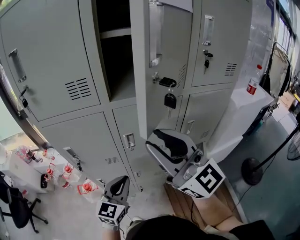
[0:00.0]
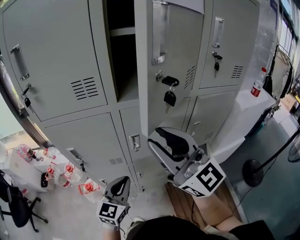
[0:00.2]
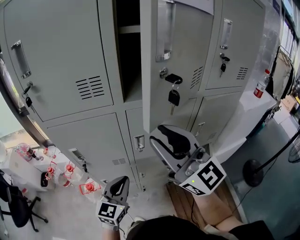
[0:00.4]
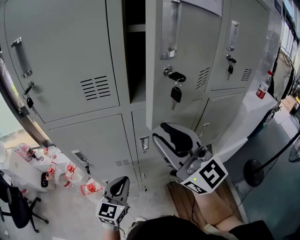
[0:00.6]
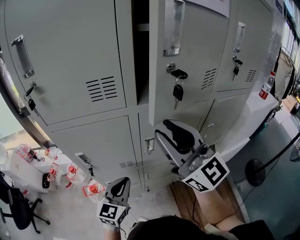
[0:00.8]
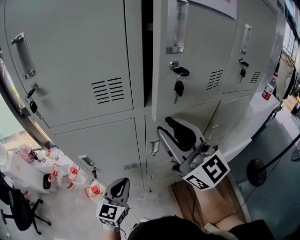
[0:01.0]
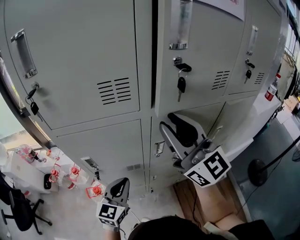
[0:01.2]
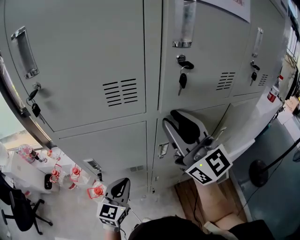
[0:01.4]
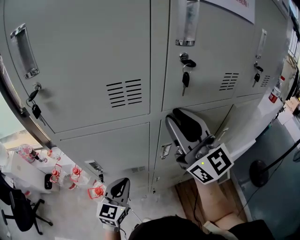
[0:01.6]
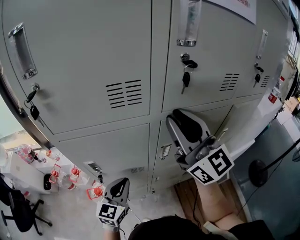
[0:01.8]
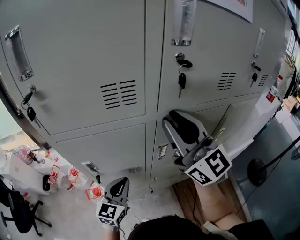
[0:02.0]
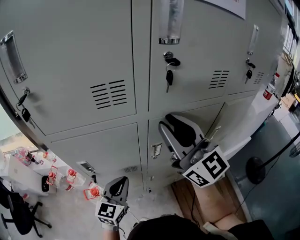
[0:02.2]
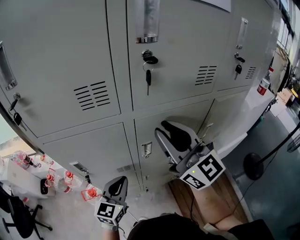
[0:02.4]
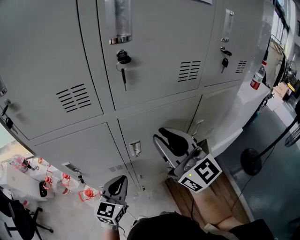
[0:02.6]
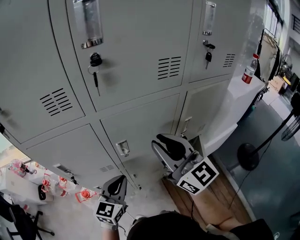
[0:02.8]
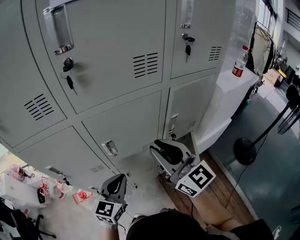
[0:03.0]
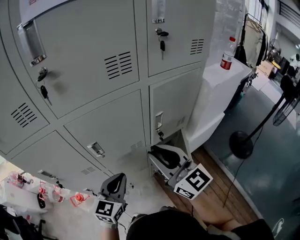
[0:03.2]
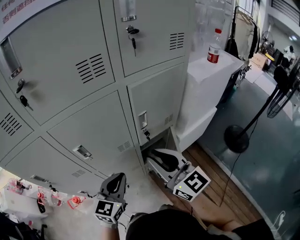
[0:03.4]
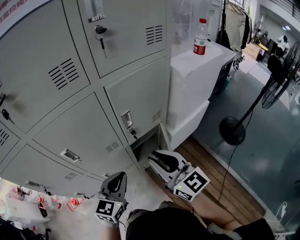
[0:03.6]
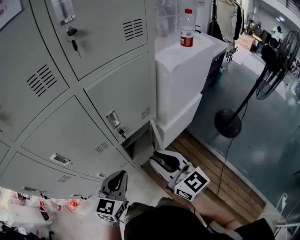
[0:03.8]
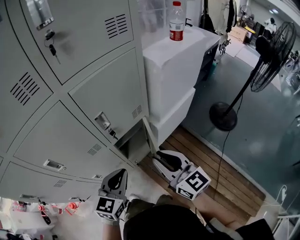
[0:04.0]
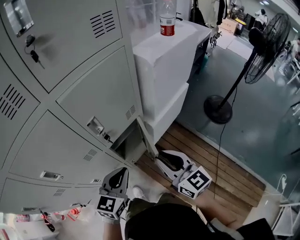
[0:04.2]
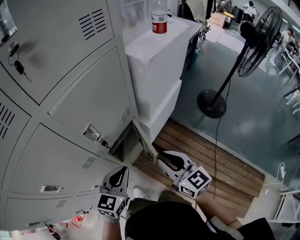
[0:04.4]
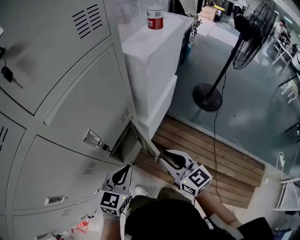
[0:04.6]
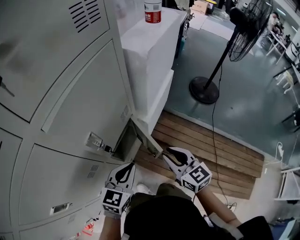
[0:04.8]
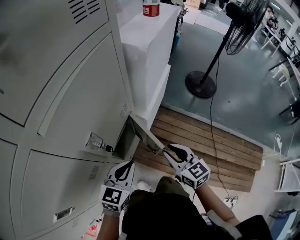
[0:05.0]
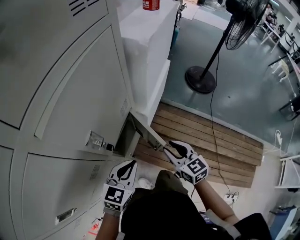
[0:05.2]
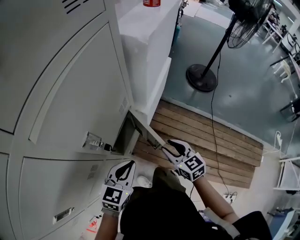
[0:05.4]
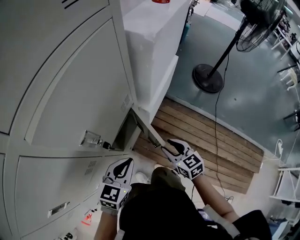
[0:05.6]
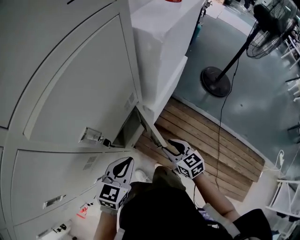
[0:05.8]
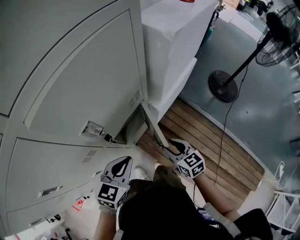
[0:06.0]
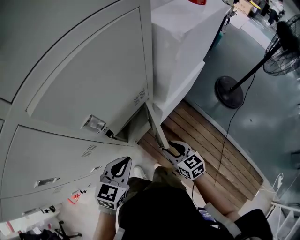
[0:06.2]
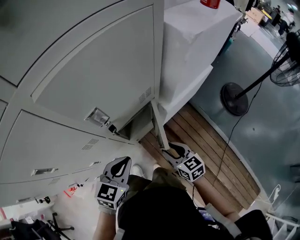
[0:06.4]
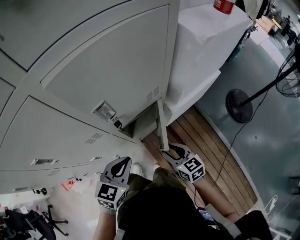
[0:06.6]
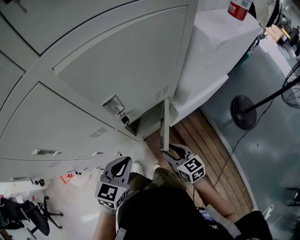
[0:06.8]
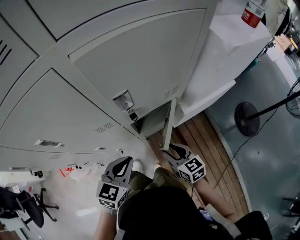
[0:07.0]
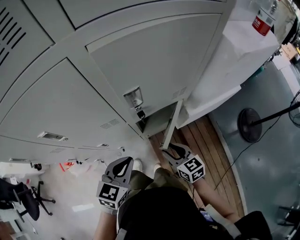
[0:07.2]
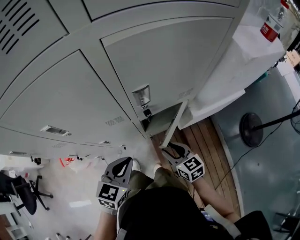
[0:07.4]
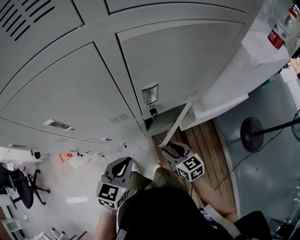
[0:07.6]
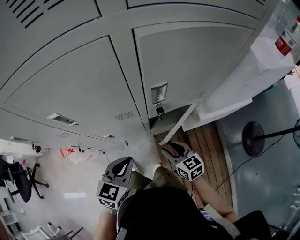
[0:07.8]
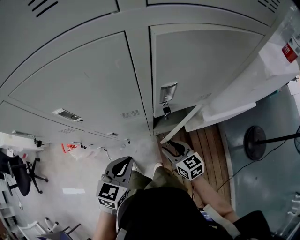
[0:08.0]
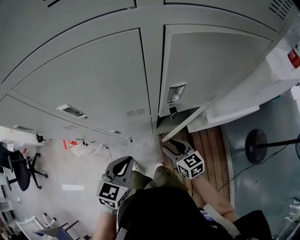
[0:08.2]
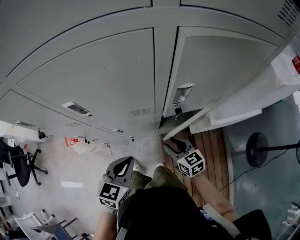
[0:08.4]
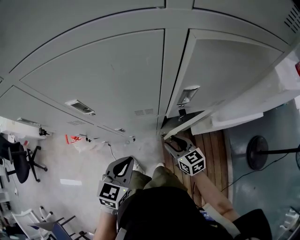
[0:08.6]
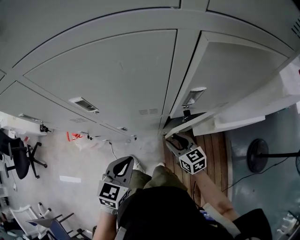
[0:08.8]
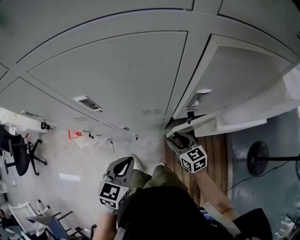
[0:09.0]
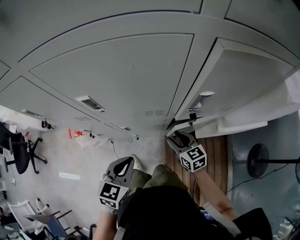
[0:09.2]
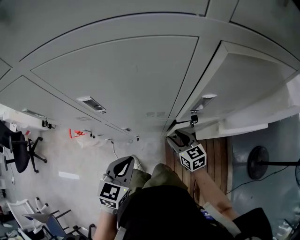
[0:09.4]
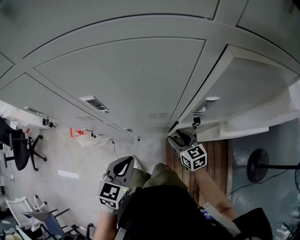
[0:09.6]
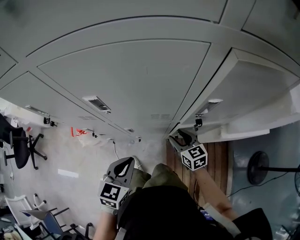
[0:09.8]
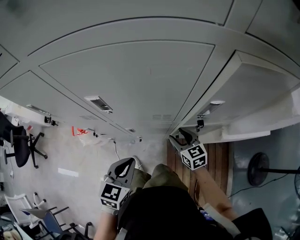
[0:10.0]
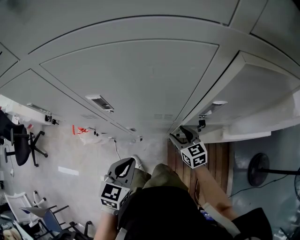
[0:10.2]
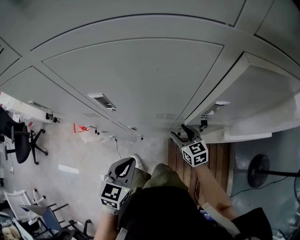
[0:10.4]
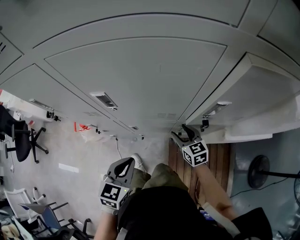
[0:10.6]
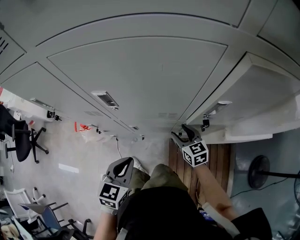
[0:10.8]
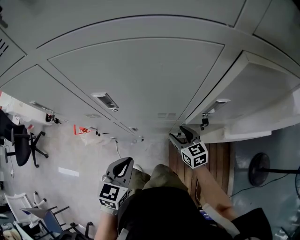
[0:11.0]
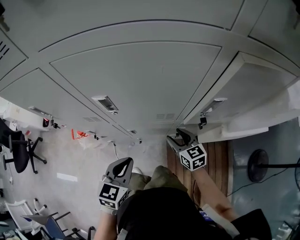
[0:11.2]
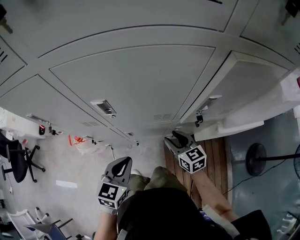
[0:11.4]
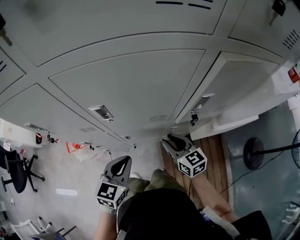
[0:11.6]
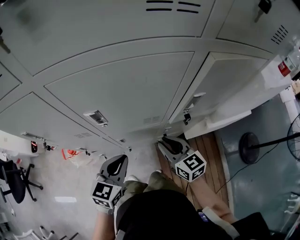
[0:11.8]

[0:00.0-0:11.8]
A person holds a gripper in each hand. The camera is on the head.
0:00.0 to 0:01.4: The right gripper goes some 15 cm forward and to the left, while the left gripper is displaced to the left and forward by roughly 15 cm.
0:01.4 to 0:03.0: The right gripper travels to the right, downward and backward by about 20 cm; the left gripper heads to the right, covering about 20 cm.
0:03.0 to 0:04.4: The right gripper shifts by about 35 cm, and rotates about 40 degrees. Meanwhile the left gripper moves approximately 30 cm, and turns by roughly 30 degrees.
0:04.4 to 0:06.0: The left gripper moves downward, about 5 cm. The right gripper moves downward, approximately 20 cm, and changes its angle by about 20 degrees.
0:06.0 to 0:07.4: The right gripper moves roughly 10 cm, and turns by some 30 degrees. Meanwhile the left gripper moves some 10 cm, and turns by some 30 degrees.
0:07.4 to 0:08.8: The left gripper is displaced to the left by roughly 10 cm. Meanwhile the right gripper heads to the left and forward, covering approximately 10 cm.
0:08.8 to 0:10.4: The right gripper goes about 5 cm forward.
0:10.4 to 0:11.8: The right gripper heads upward and backward, covering roughly 15 cm, and closes up; the left gripper moves upward, roughly 5 cm.

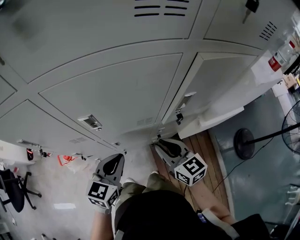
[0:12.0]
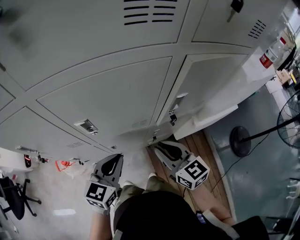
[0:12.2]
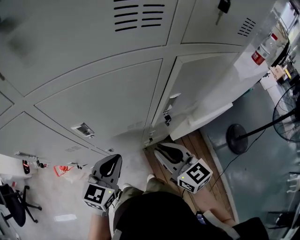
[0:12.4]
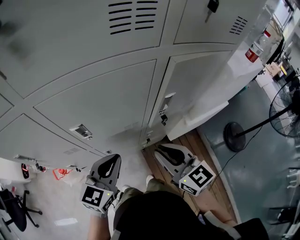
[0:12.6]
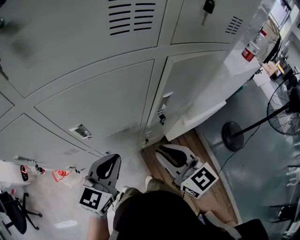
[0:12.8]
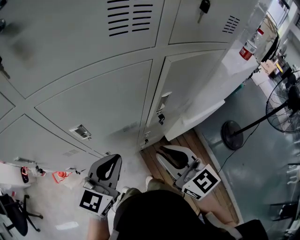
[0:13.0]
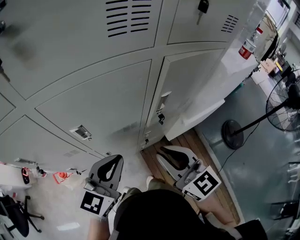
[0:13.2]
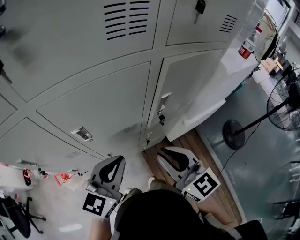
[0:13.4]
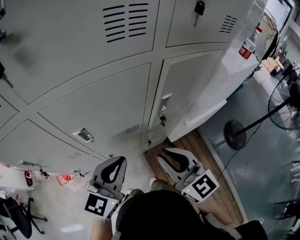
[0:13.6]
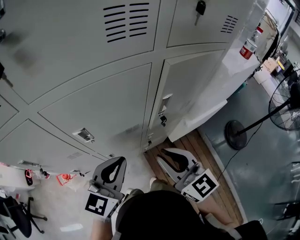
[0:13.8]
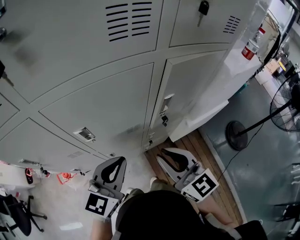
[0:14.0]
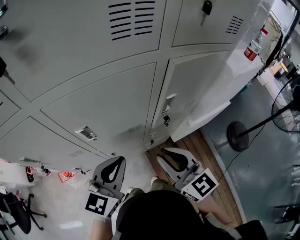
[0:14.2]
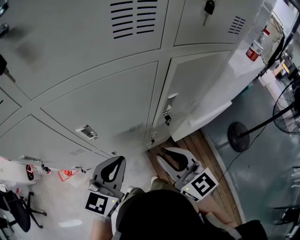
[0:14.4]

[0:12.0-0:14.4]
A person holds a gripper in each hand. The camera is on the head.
0:12.0 to 0:13.2: The left gripper heads upward, covering roughly 10 cm. Meanwhile the right gripper heads upward and backward, covering approximately 15 cm.
0:13.2 to 0:14.4: The grippers move only a little.

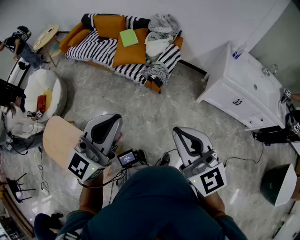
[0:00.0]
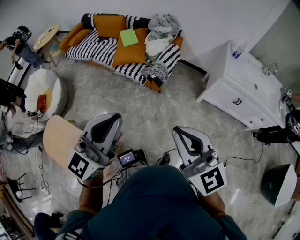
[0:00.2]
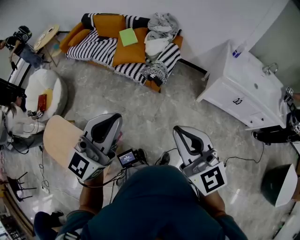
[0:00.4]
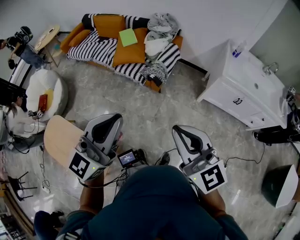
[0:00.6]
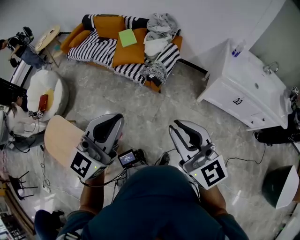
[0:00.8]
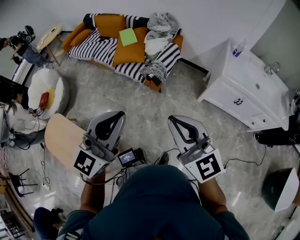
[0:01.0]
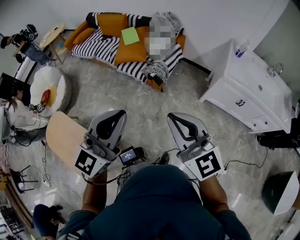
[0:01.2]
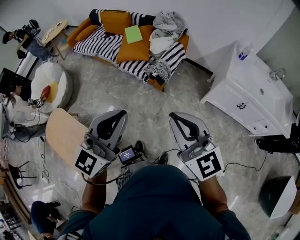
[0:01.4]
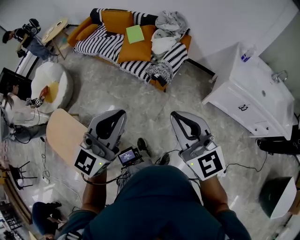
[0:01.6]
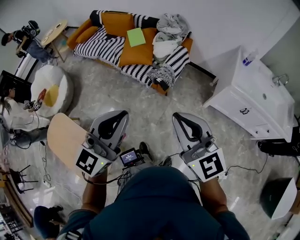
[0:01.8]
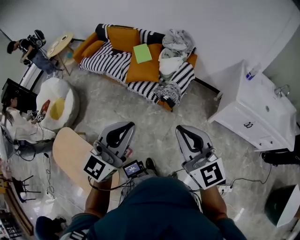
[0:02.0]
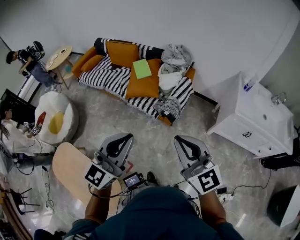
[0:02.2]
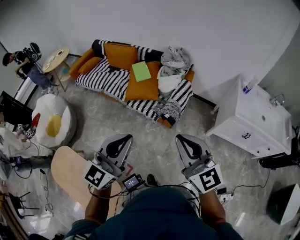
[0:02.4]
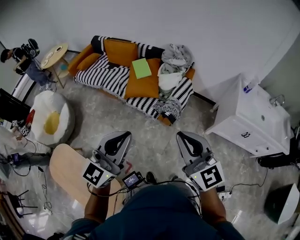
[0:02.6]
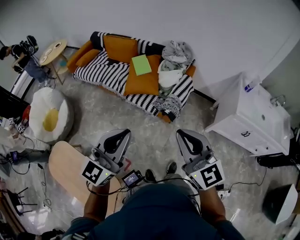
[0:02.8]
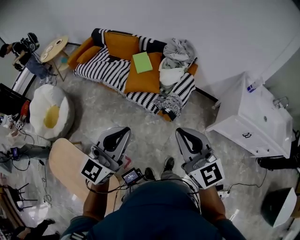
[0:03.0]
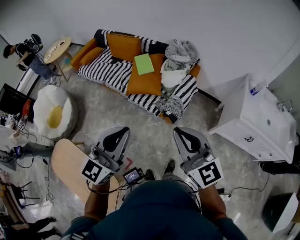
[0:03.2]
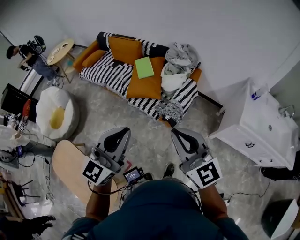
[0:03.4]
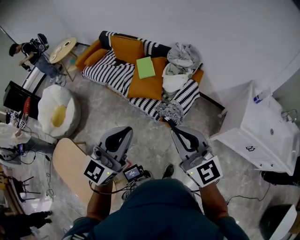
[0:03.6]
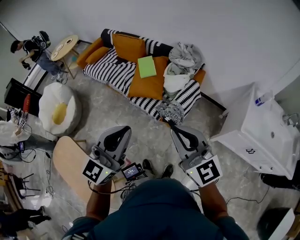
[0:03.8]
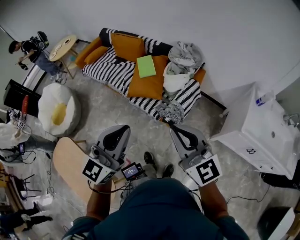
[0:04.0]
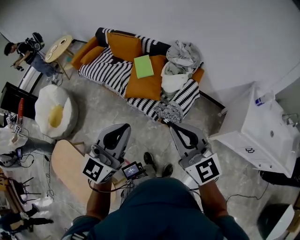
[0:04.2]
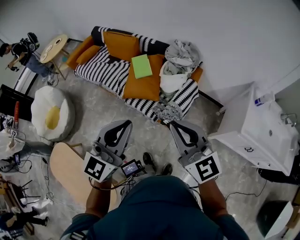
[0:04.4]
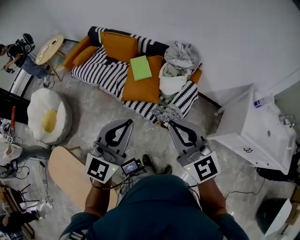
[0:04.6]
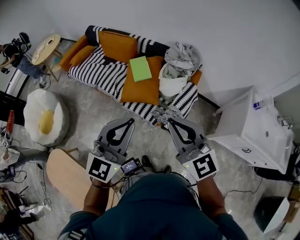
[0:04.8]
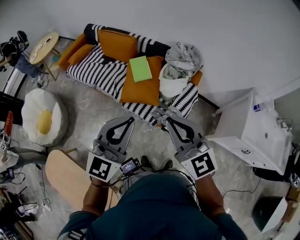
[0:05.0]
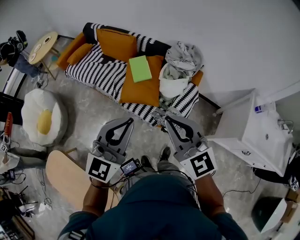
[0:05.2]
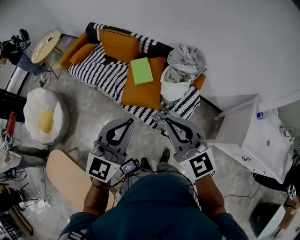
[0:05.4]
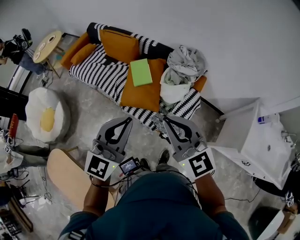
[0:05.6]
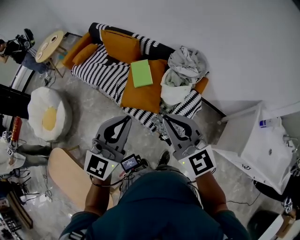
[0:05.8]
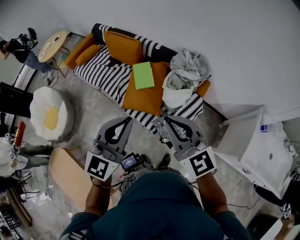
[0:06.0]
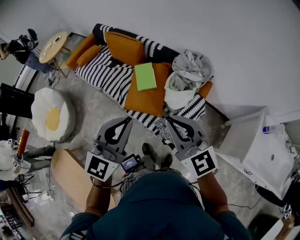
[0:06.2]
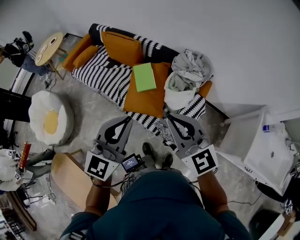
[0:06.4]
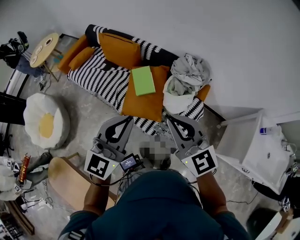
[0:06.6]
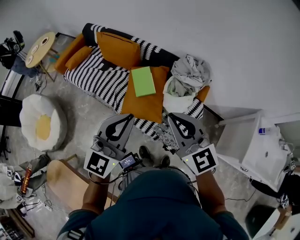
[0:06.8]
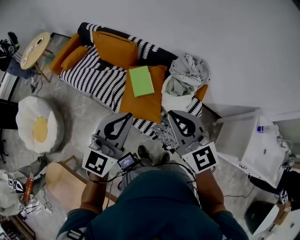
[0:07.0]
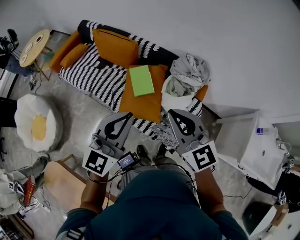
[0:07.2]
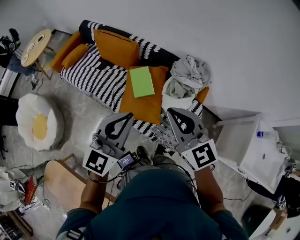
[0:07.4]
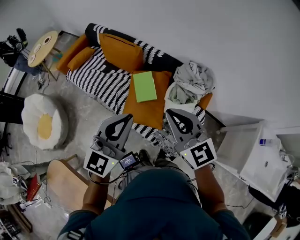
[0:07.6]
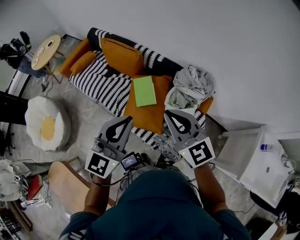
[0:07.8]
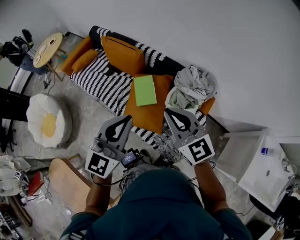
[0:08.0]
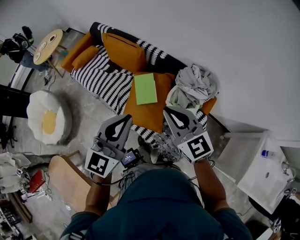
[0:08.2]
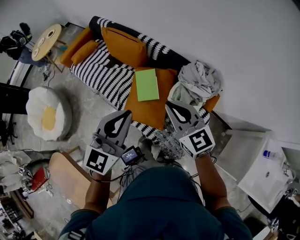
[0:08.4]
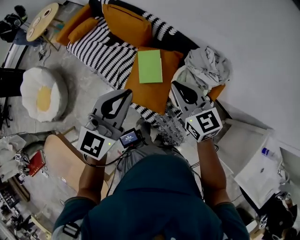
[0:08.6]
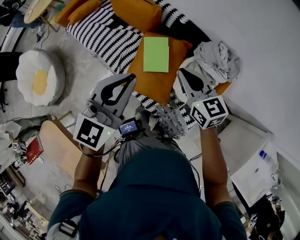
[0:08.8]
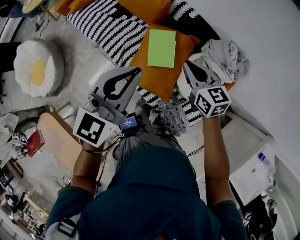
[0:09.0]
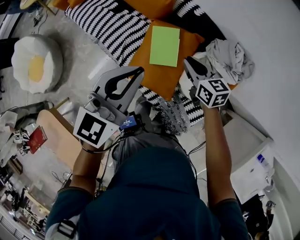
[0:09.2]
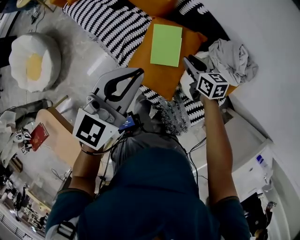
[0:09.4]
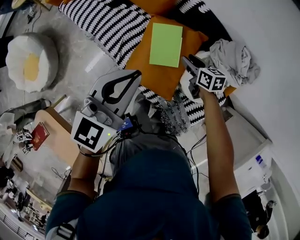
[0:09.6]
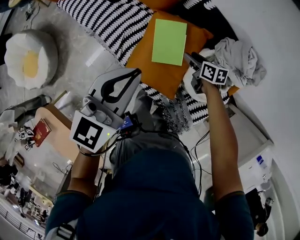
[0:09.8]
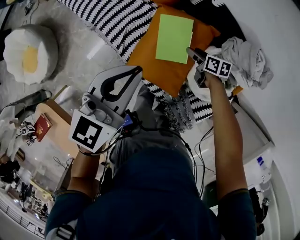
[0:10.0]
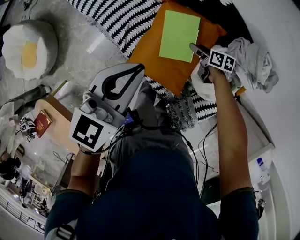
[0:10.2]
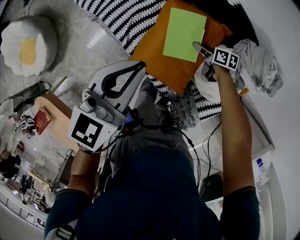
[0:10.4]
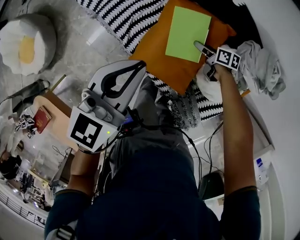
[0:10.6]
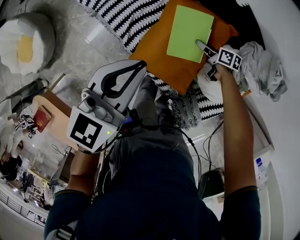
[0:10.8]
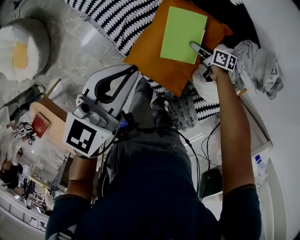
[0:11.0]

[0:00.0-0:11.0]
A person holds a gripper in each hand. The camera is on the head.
0:00.0 to 0:01.6: The left gripper heads to the right, covering approximately 5 cm. Meanwhile the right gripper moves forward, some 10 cm.
0:01.6 to 0:03.2: Both grippers move forward and to the left, some 20 cm.
0:03.2 to 0:04.8: Both grippers travel together forward, some 20 cm.
0:04.8 to 0:06.2: Both grippers move forward, about 15 cm.
0:06.2 to 0:07.8: Both grippers move forward, some 15 cm.
0:07.8 to 0:09.4: The right gripper heads downward and forward, covering some 40 cm, rotates about 50 degrees, and opens its fingers. Meanwhile the left gripper shifts about 25 cm forward and downward.
0:09.4 to 0:11.0: The left gripper changes place by approximately 5 cm. Meanwhile the right gripper moves downward and to the right, roughly 15 cm, changes its angle by some 30 degrees, and opens its fingers.
